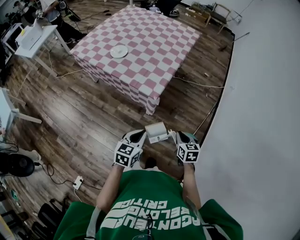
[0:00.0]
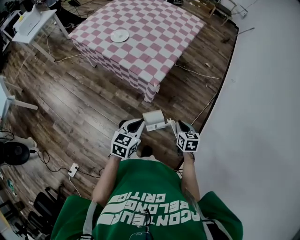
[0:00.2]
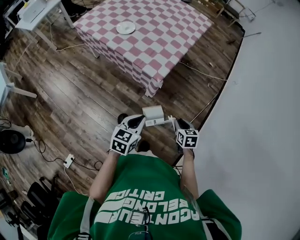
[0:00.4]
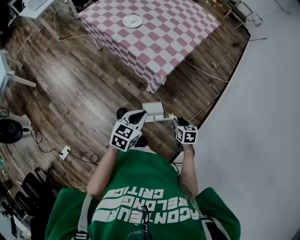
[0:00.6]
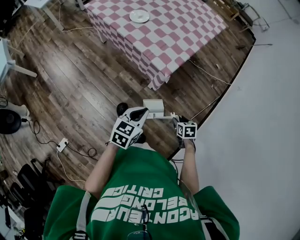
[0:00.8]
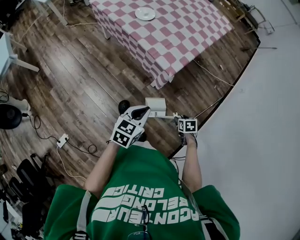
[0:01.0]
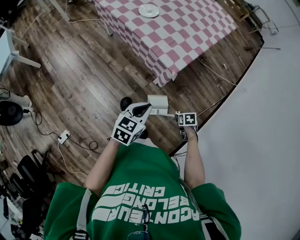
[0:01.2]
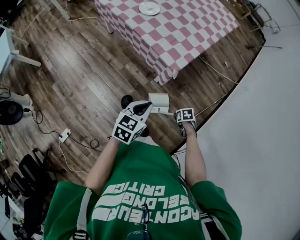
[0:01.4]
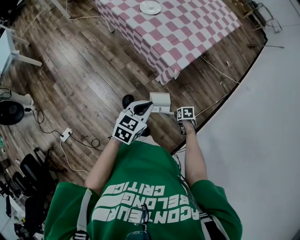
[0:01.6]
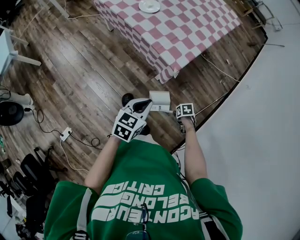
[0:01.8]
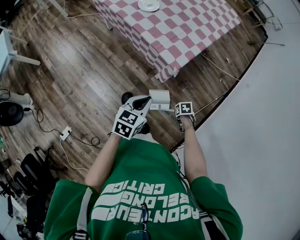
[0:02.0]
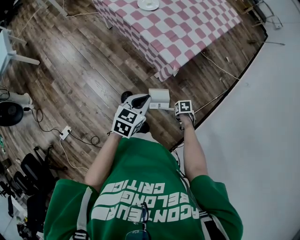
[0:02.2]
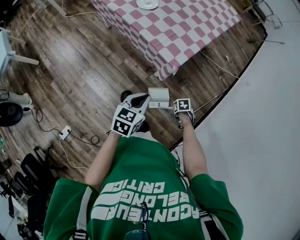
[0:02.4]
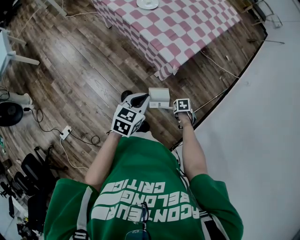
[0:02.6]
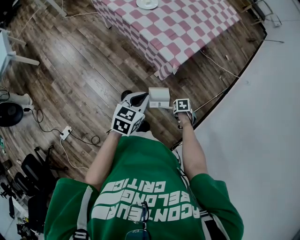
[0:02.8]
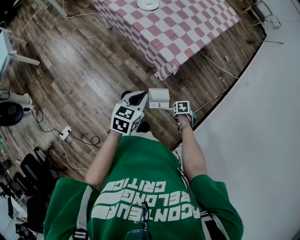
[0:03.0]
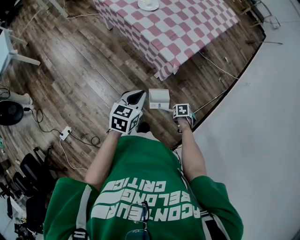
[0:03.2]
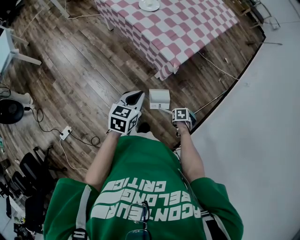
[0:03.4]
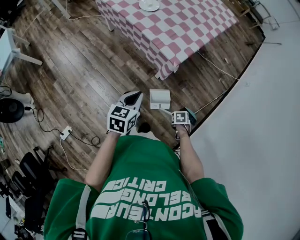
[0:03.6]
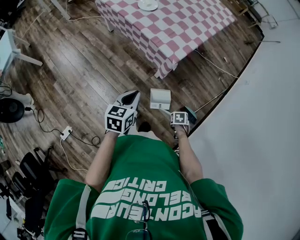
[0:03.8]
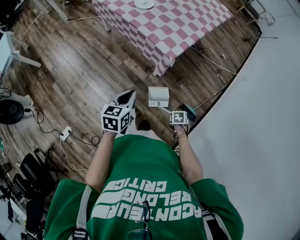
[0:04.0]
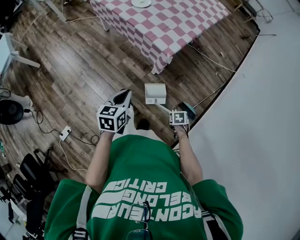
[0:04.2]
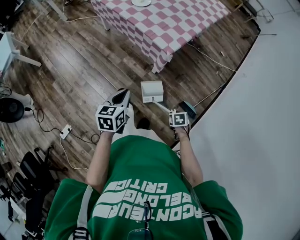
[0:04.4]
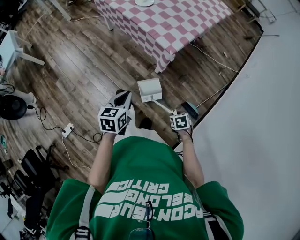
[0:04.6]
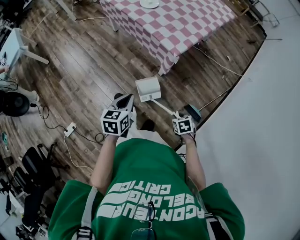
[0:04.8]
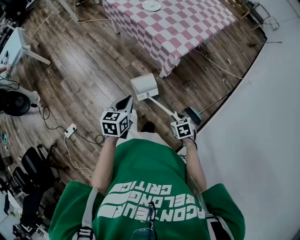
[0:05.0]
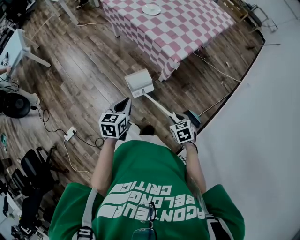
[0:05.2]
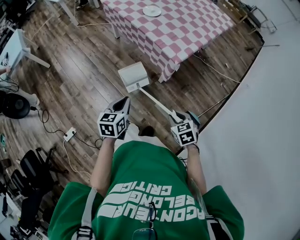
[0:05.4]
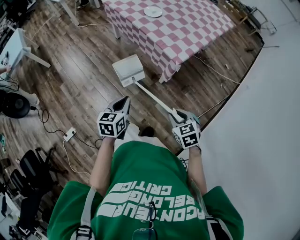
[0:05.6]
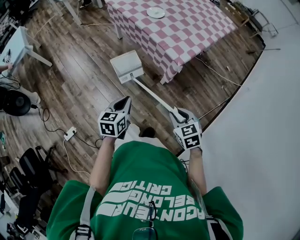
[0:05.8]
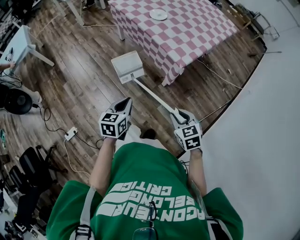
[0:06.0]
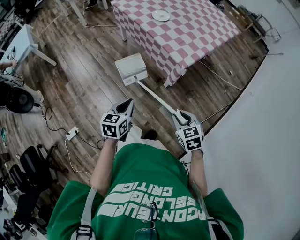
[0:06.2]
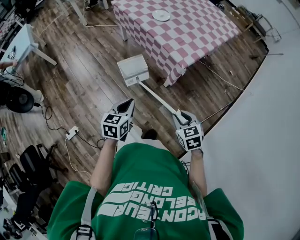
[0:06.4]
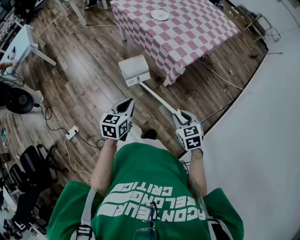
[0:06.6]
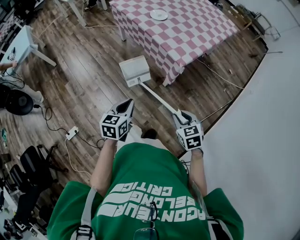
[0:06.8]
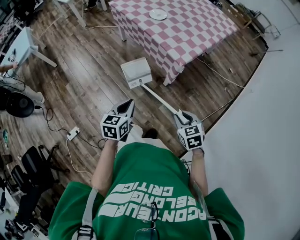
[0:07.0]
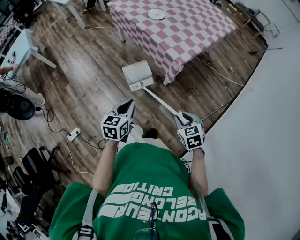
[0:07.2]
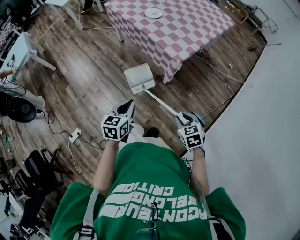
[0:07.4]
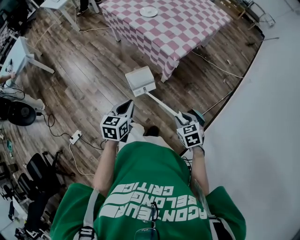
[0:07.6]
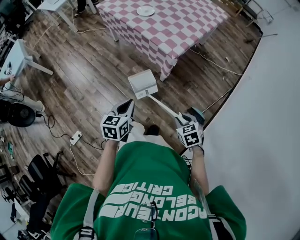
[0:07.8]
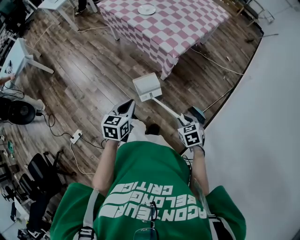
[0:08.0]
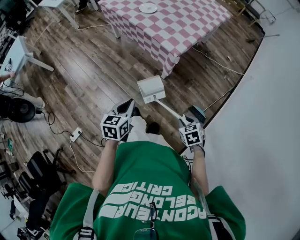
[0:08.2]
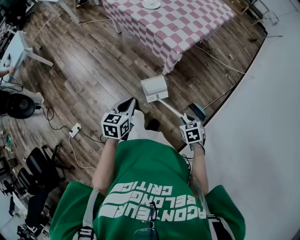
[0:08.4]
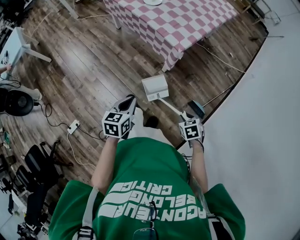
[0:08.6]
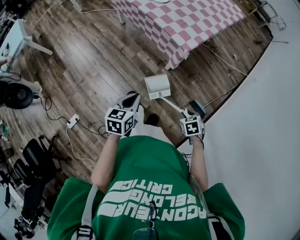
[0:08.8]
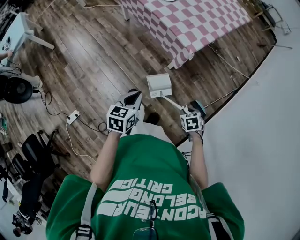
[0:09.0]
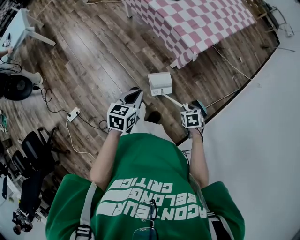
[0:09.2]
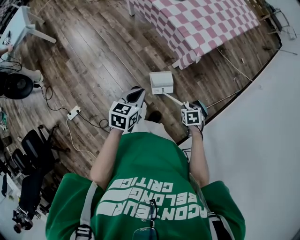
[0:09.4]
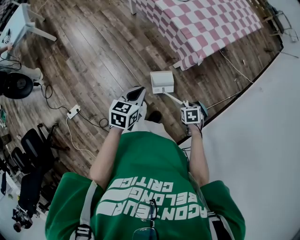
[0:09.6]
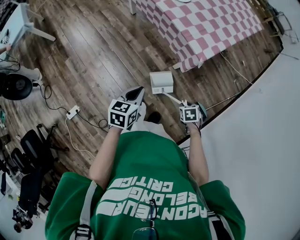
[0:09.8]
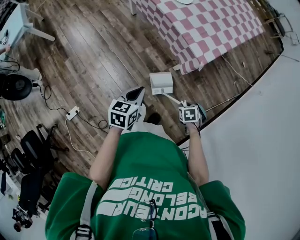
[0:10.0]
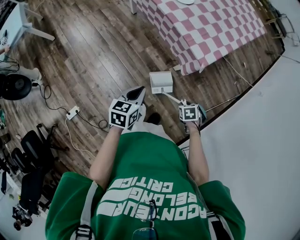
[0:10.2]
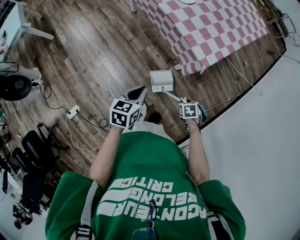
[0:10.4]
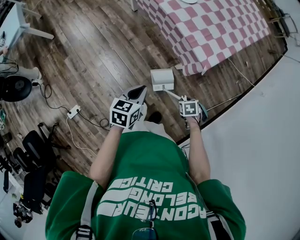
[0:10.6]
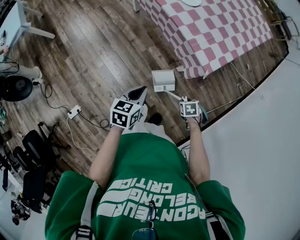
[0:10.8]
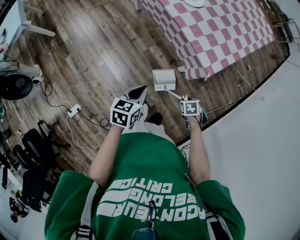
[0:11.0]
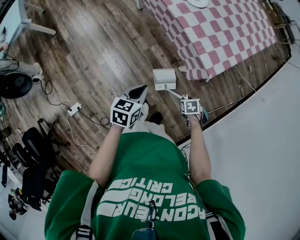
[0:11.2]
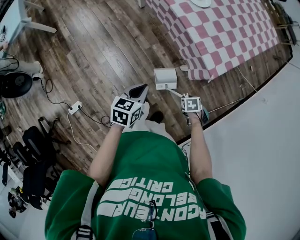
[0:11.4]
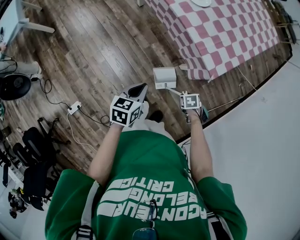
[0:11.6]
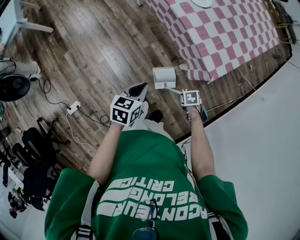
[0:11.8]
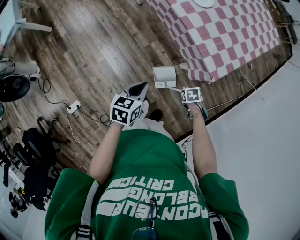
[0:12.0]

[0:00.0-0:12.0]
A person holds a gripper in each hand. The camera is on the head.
0:00.0 to 0:01.6: The right gripper is displaced downward by roughly 25 cm, tilts its fingers roughly 40 degrees downward, and opens its fingers.
0:01.6 to 0:03.0: The right gripper closes its fingers.
0:03.0 to 0:04.4: The right gripper shifts by some 15 cm. The left gripper shifts by approximately 10 cm.
0:04.4 to 0:06.0: The right gripper heads upward, covering roughly 25 cm, and angles its fingers upward, by approximately 30 degrees; the left gripper changes place by approximately 5 cm.
0:06.0 to 0:07.6: The left gripper ends up approximately 5 cm from where it was. The right gripper travels to the right, downward and backward by roughly 10 cm.
0:07.6 to 0:09.0: The right gripper shifts about 10 cm downward.
0:09.0 to 0:10.4: The right gripper moves approximately 15 cm. Meanwhile the left gripper moves some 15 cm.
0:10.4 to 0:12.0: The right gripper moves roughly 15 cm, while the left gripper changes place by about 10 cm.

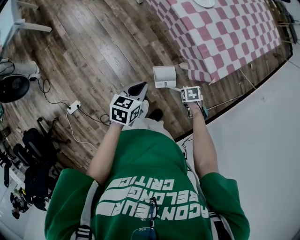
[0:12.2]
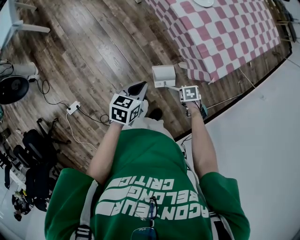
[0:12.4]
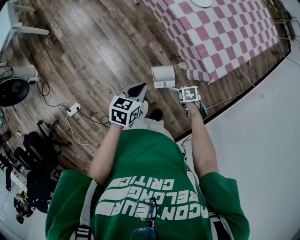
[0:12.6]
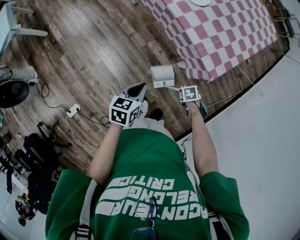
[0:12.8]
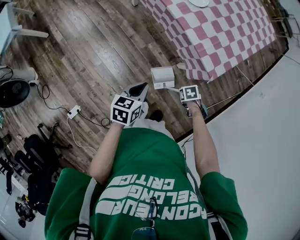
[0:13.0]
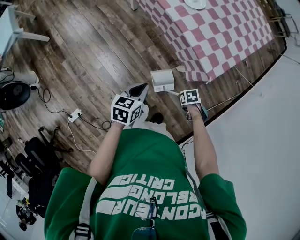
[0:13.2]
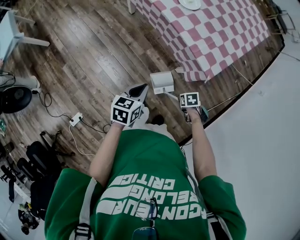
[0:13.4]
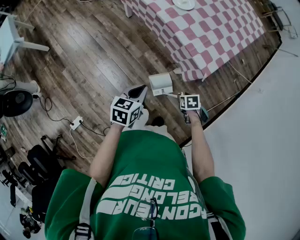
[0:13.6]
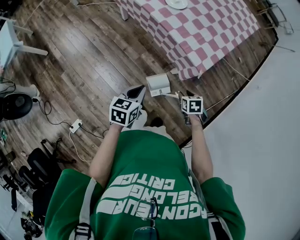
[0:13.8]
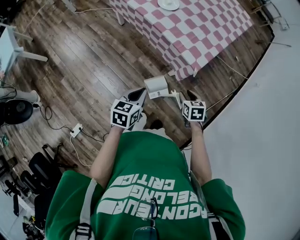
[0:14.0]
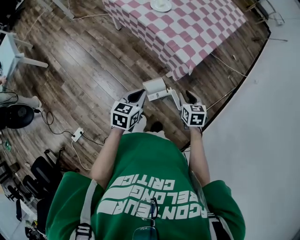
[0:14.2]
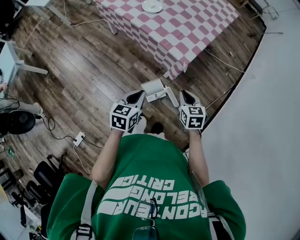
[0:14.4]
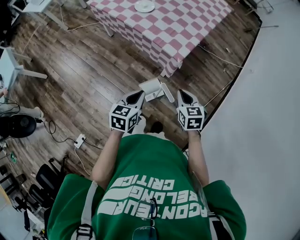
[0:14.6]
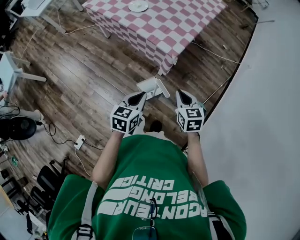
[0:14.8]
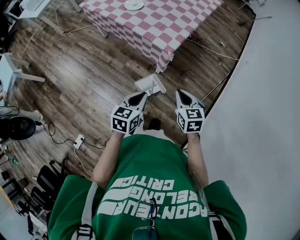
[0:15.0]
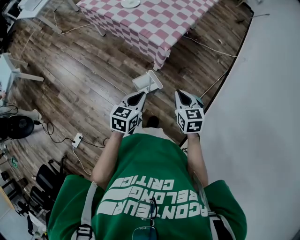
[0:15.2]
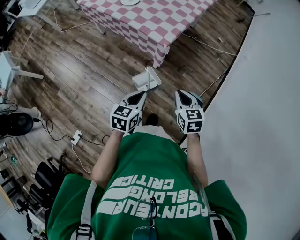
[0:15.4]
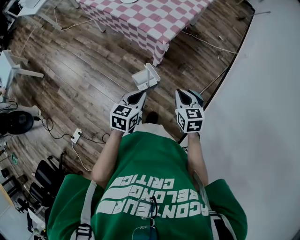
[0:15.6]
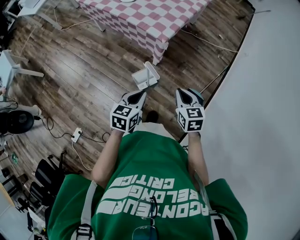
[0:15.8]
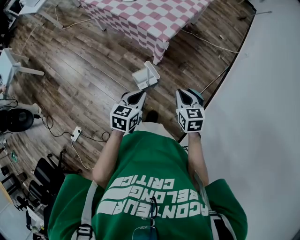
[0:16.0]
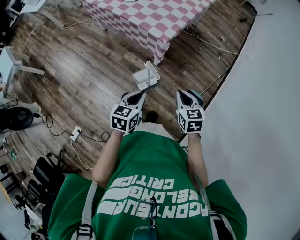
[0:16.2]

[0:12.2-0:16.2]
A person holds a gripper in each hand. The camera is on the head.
0:12.2 to 0:13.6: The right gripper heads upward, covering some 5 cm.
0:13.6 to 0:14.8: The left gripper ends up some 20 cm from where it was. The right gripper moves upward, about 25 cm, tips its fingers upward by some 40 degrees, and closes its fingers.
0:14.8 to 0:16.2: Both grippers move to the right and backward, some 10 cm.

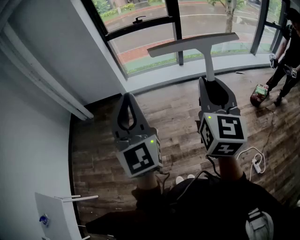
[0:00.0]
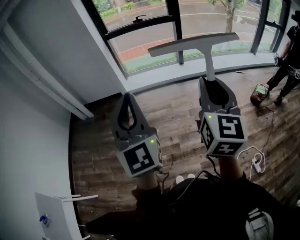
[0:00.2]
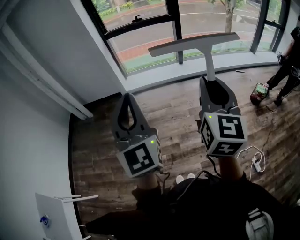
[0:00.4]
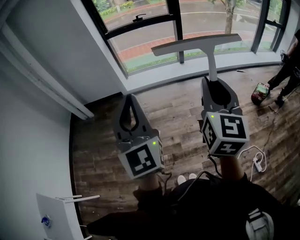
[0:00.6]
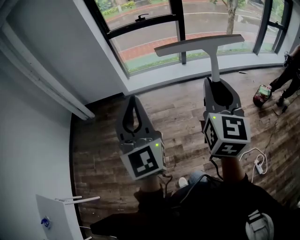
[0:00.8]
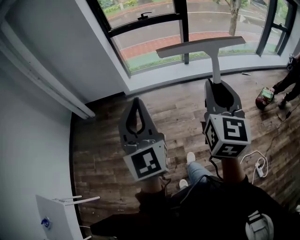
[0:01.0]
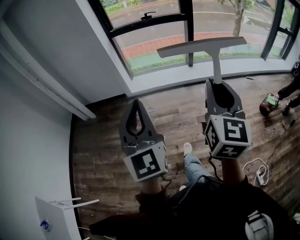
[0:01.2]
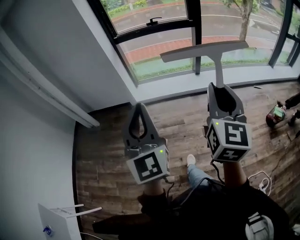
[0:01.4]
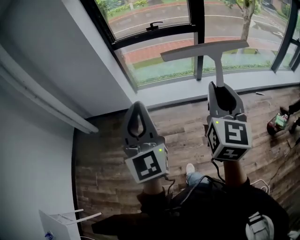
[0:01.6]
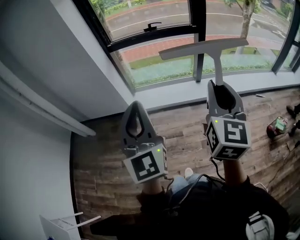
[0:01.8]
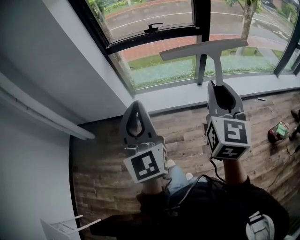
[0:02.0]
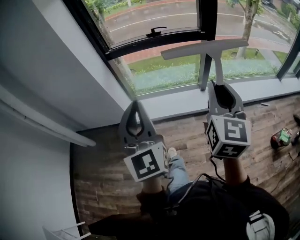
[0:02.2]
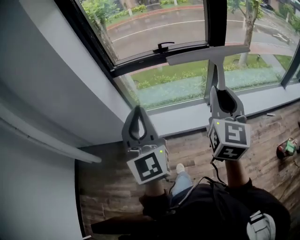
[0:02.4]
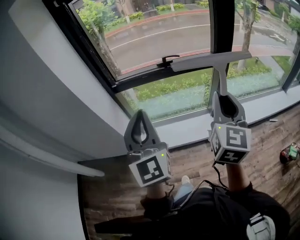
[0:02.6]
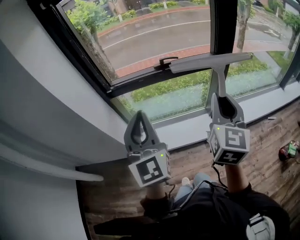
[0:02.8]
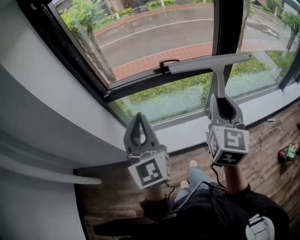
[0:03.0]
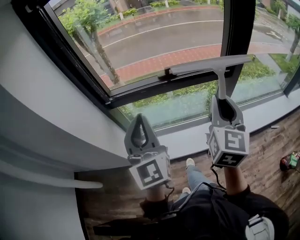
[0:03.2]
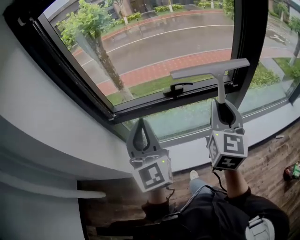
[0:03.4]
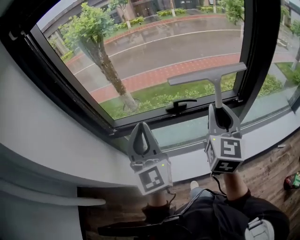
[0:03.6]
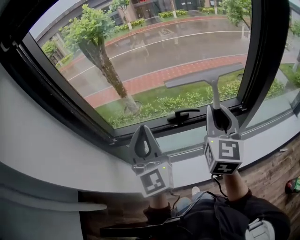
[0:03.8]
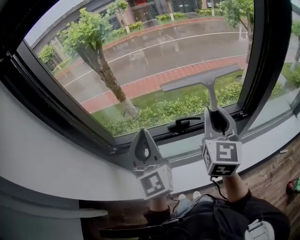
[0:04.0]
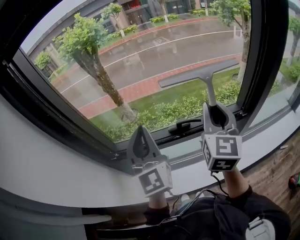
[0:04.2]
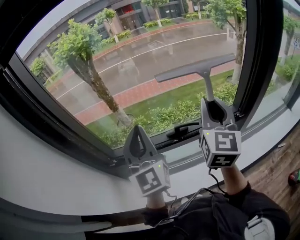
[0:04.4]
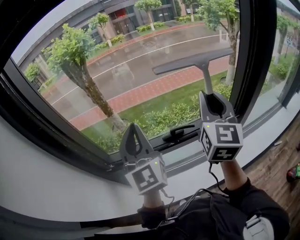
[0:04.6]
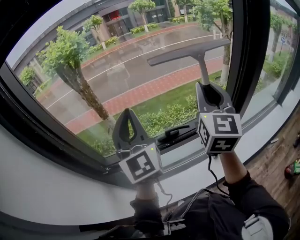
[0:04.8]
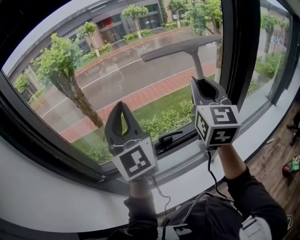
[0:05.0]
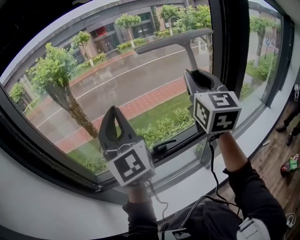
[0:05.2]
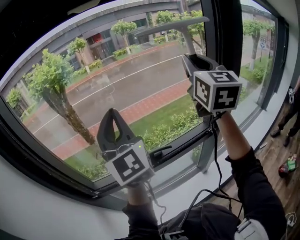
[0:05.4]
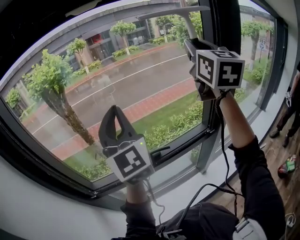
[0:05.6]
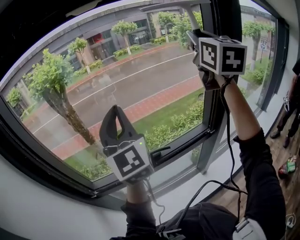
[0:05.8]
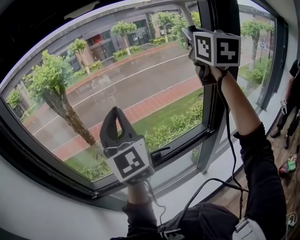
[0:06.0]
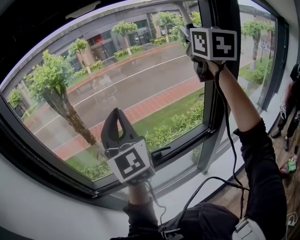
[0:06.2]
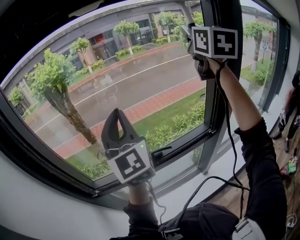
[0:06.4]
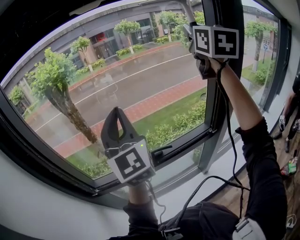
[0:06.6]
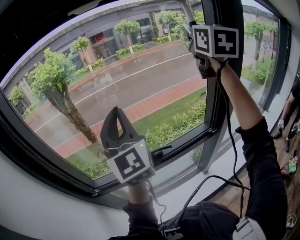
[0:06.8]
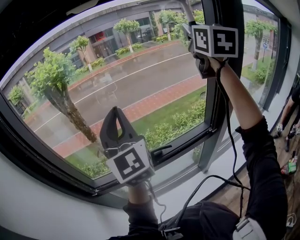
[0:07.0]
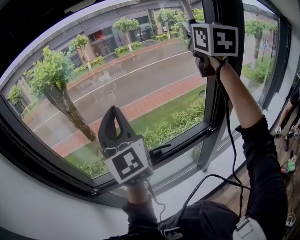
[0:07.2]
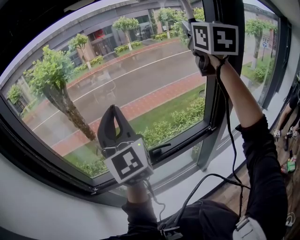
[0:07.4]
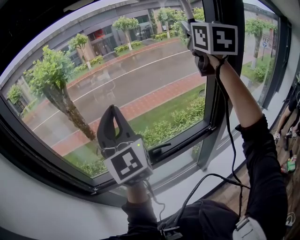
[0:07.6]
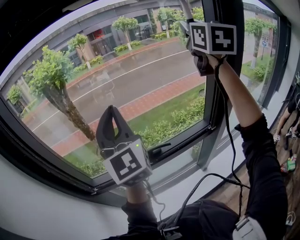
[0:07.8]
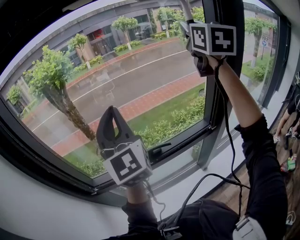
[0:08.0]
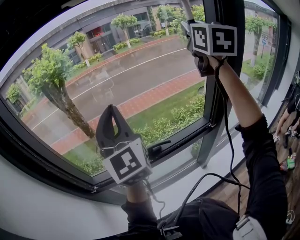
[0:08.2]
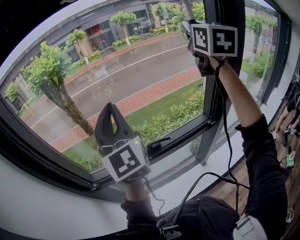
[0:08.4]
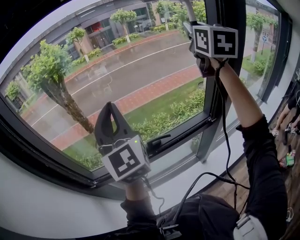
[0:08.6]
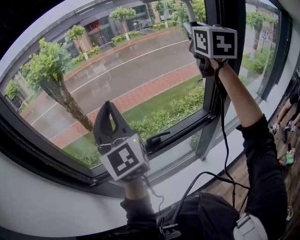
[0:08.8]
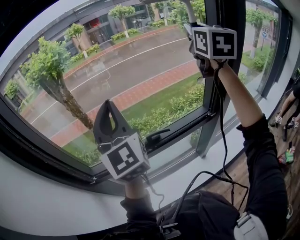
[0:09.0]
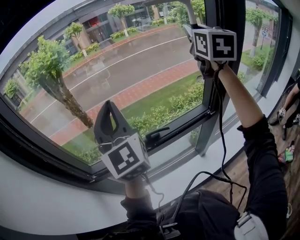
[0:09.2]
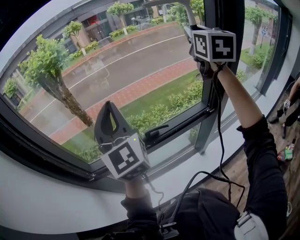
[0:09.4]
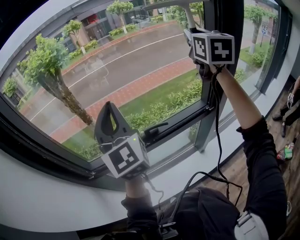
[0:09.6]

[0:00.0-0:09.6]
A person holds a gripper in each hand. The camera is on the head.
0:00.0 to 0:01.6: Both grippers move forward, about 35 cm.
0:01.6 to 0:03.2: The pair of grippers is taken forward, roughly 70 cm.
0:03.2 to 0:04.8: Both grippers move forward, some 30 cm.
0:04.8 to 0:06.4: The left gripper is displaced upward and to the right by roughly 10 cm. The right gripper heads upward, to the right and forward, covering approximately 25 cm.
0:06.4 to 0:08.0: The grippers move only a little.
0:08.0 to 0:09.6: The left gripper heads downward, covering about 5 cm. The right gripper is displaced downward by roughly 10 cm.
